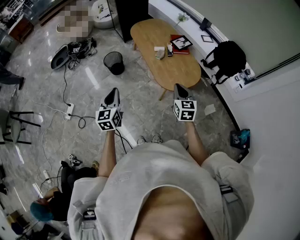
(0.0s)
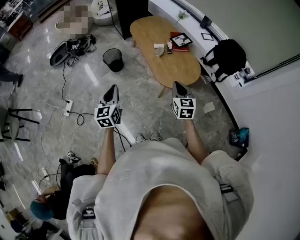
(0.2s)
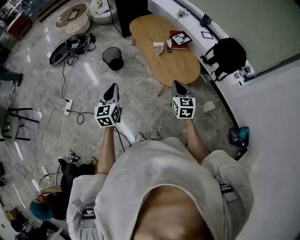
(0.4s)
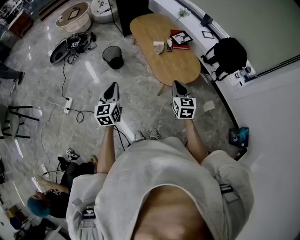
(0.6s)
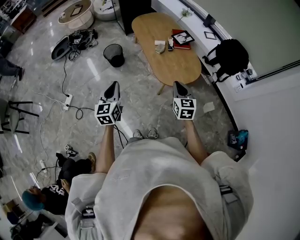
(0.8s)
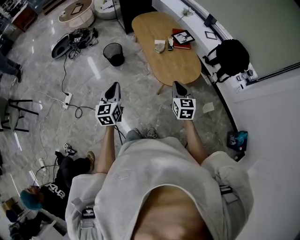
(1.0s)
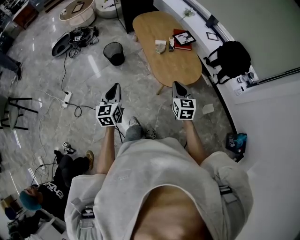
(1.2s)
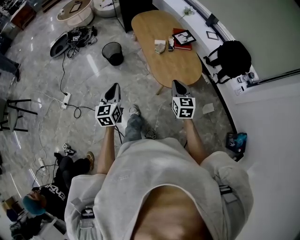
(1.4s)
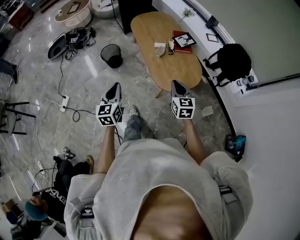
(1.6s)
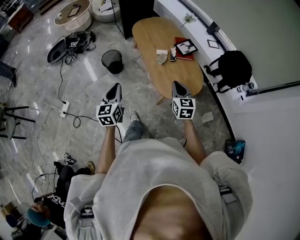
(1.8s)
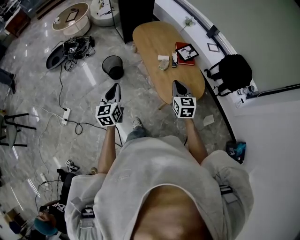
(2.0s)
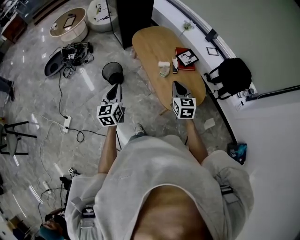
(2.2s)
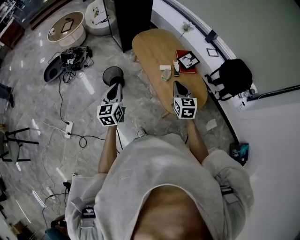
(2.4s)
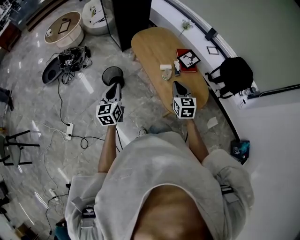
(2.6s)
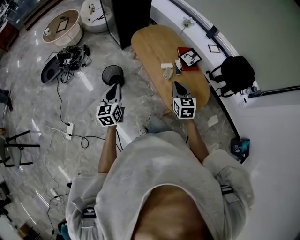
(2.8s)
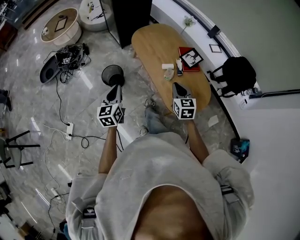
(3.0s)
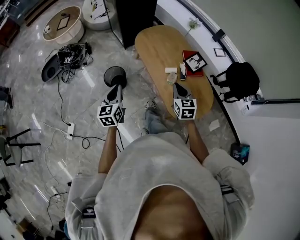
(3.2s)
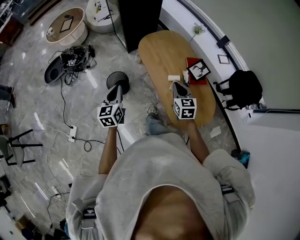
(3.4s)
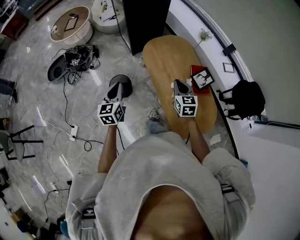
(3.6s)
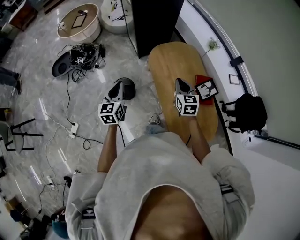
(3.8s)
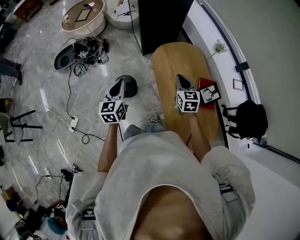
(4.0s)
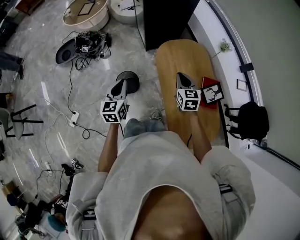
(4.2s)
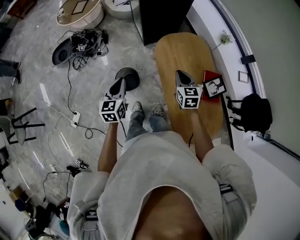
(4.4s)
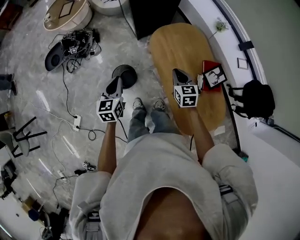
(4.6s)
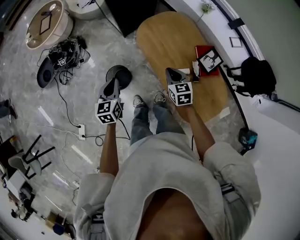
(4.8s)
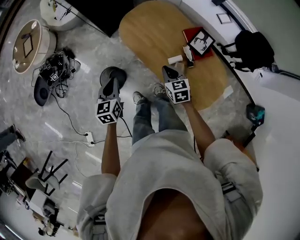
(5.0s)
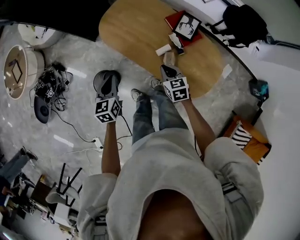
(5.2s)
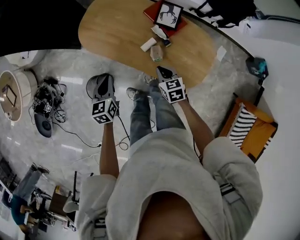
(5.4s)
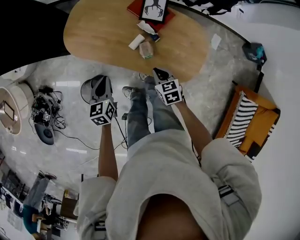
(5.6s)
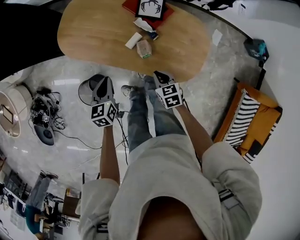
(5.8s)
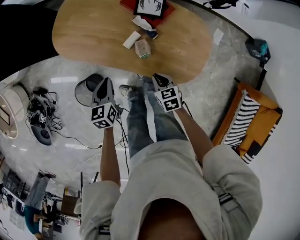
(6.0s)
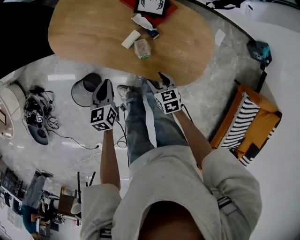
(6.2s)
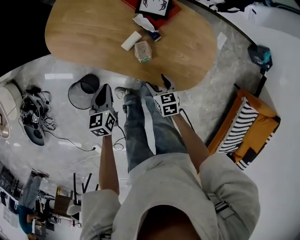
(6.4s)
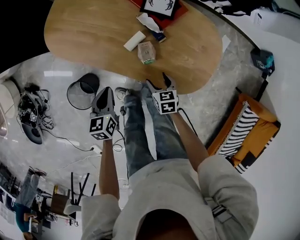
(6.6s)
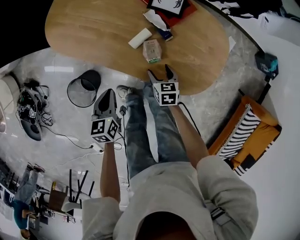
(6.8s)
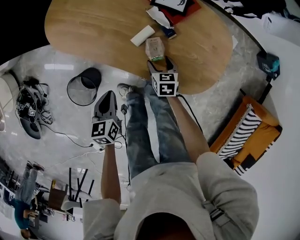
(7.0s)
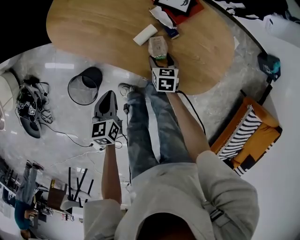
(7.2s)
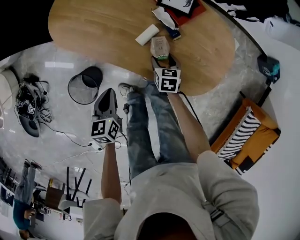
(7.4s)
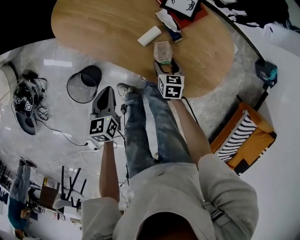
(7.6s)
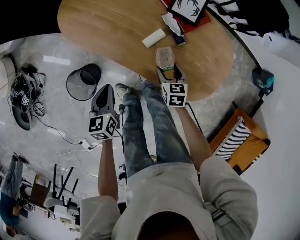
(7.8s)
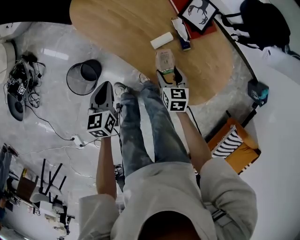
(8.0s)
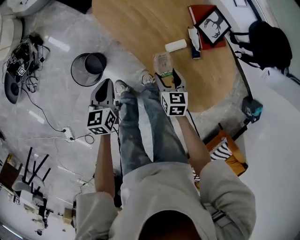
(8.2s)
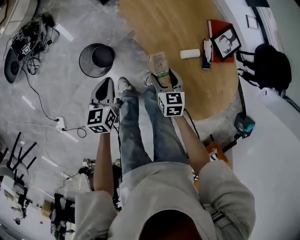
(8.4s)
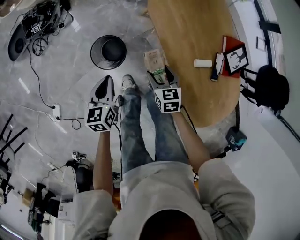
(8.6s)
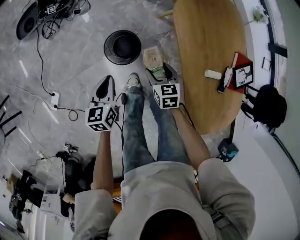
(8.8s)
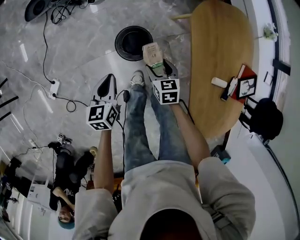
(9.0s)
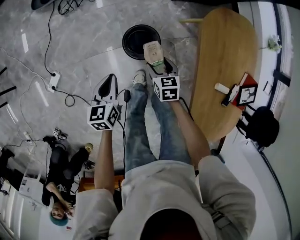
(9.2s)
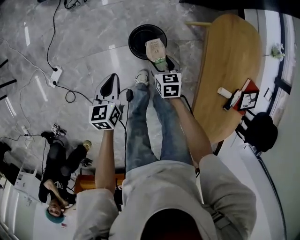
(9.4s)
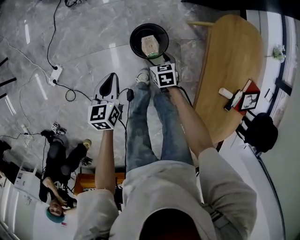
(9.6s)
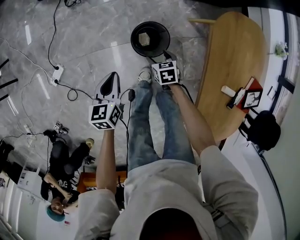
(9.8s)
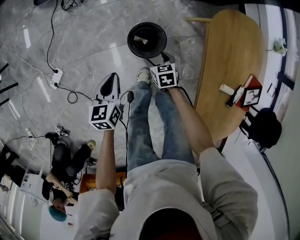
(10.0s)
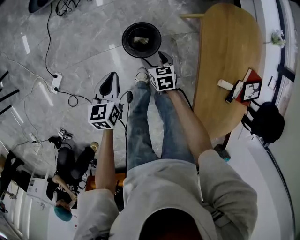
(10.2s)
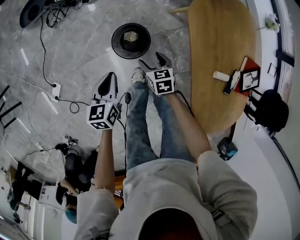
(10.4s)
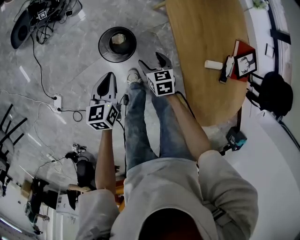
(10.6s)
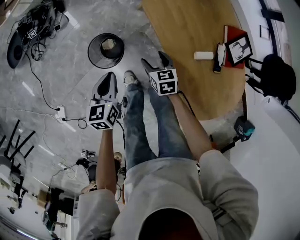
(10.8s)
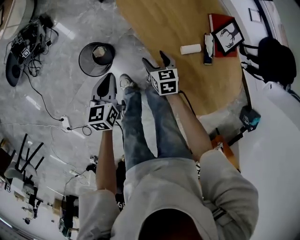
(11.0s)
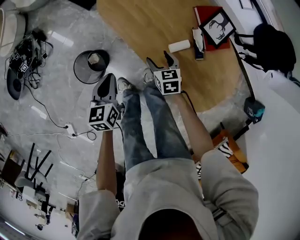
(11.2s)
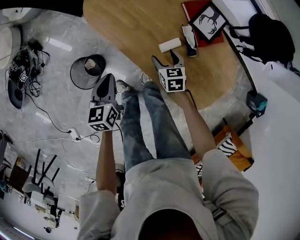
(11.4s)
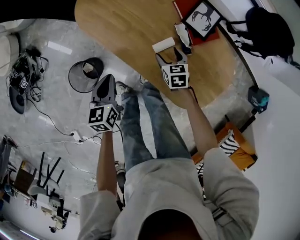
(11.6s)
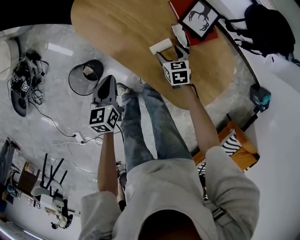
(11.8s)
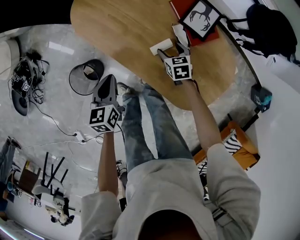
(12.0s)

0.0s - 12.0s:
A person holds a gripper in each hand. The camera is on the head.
0.0s - 1.6s: Both grippers move forward, about 5 cm.
1.6s - 3.0s: Both grippers travel together forward and to the left, approximately 25 cm.
3.0s - 4.4s: Both grippers move forward, about 25 cm.
4.4s - 6.0s: The left gripper moves roughly 30 cm, and changes its angle by about 50 degrees. The right gripper changes place by about 35 cm, and rotates roughly 50 degrees.
6.0s - 7.6s: The right gripper heads downward and forward, covering roughly 15 cm, and opens, while the left gripper goes about 10 cm downward.
7.6s - 9.0s: The right gripper ends up approximately 40 cm from where it was, and swivels some 60 degrees. Meanwhile the left gripper moves roughly 30 cm, and turns by some 50 degrees.
10.4s - 12.0s: The right gripper changes place by about 40 cm, and turns by some 40 degrees, while the left gripper changes place by roughly 35 cm, and turns by approximately 40 degrees.

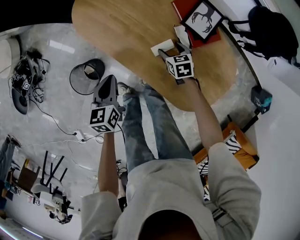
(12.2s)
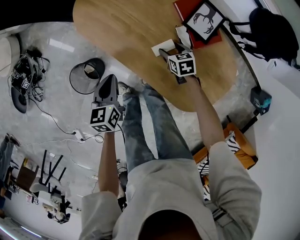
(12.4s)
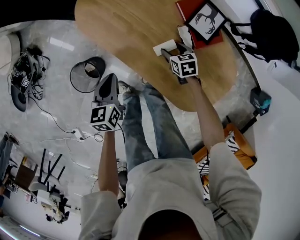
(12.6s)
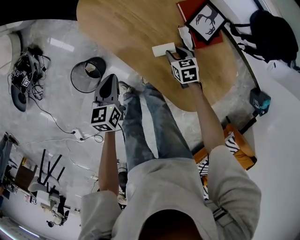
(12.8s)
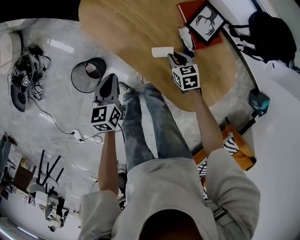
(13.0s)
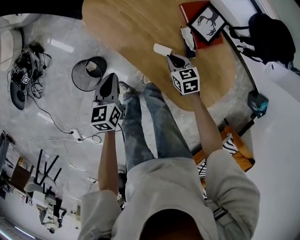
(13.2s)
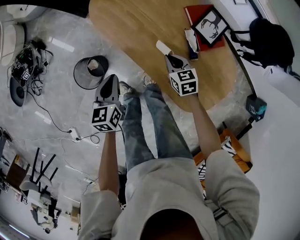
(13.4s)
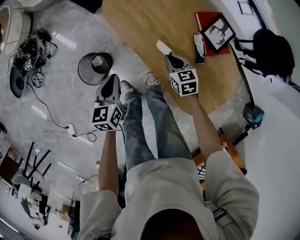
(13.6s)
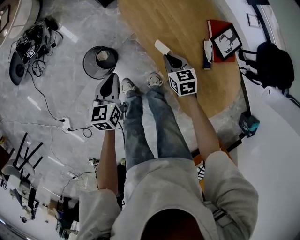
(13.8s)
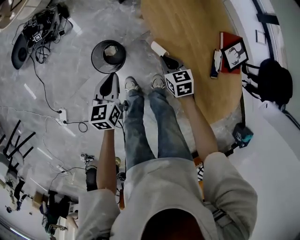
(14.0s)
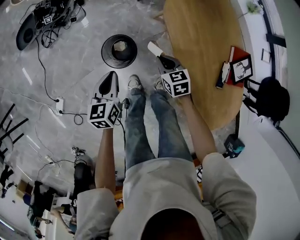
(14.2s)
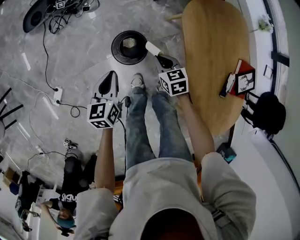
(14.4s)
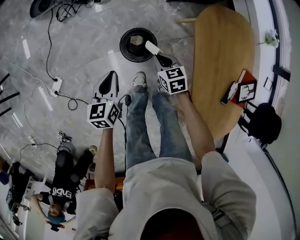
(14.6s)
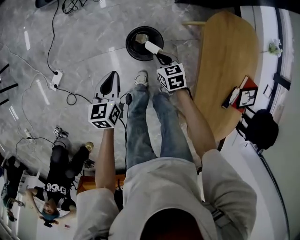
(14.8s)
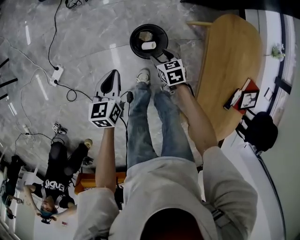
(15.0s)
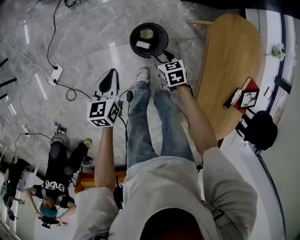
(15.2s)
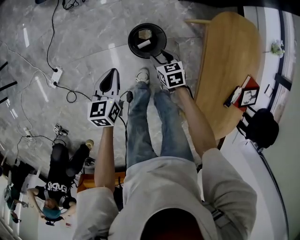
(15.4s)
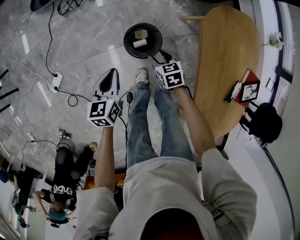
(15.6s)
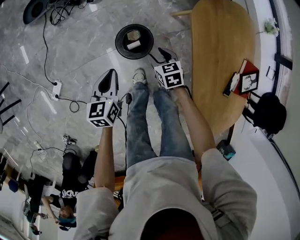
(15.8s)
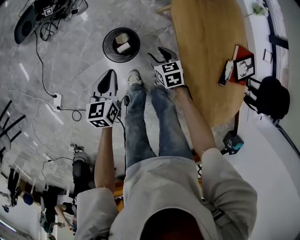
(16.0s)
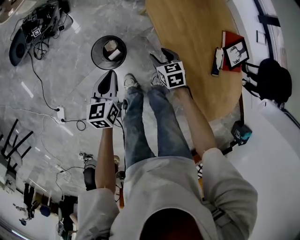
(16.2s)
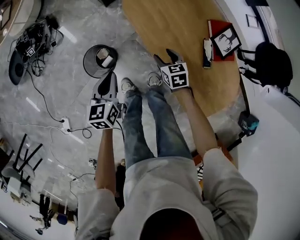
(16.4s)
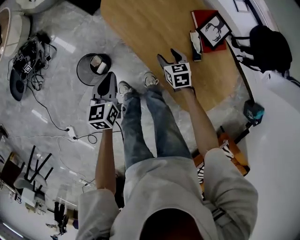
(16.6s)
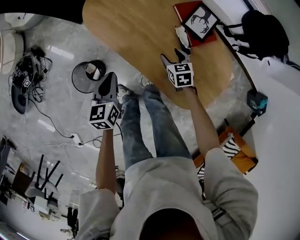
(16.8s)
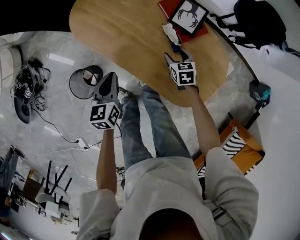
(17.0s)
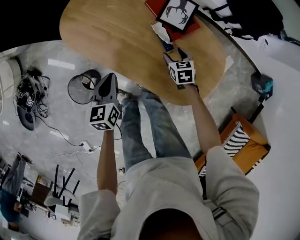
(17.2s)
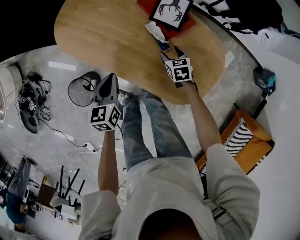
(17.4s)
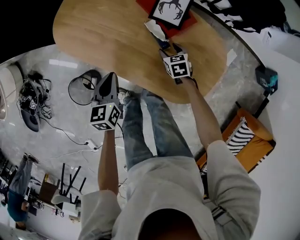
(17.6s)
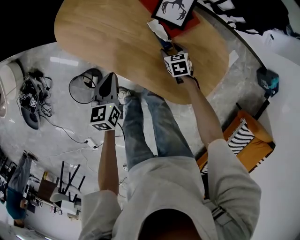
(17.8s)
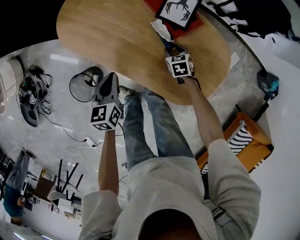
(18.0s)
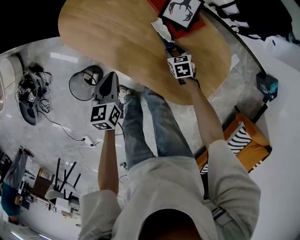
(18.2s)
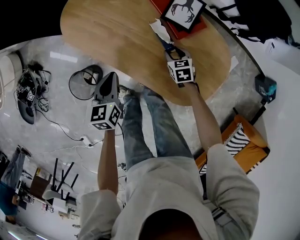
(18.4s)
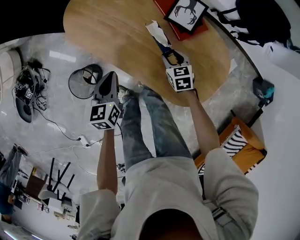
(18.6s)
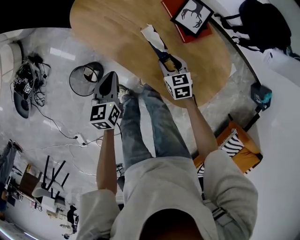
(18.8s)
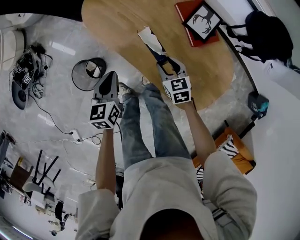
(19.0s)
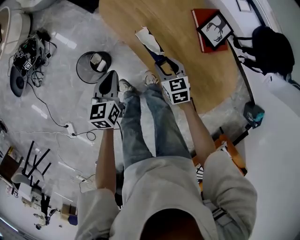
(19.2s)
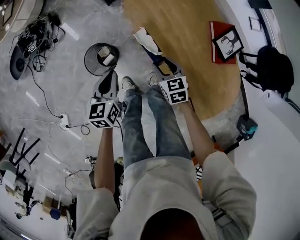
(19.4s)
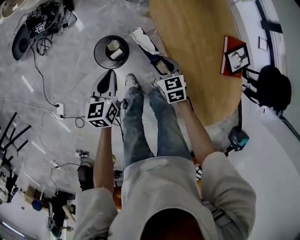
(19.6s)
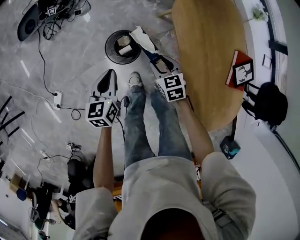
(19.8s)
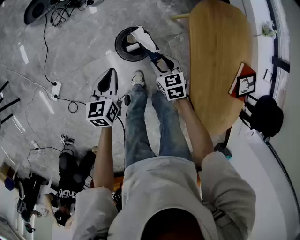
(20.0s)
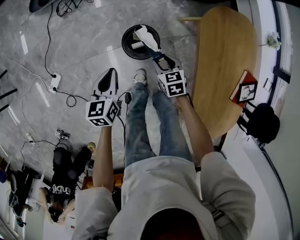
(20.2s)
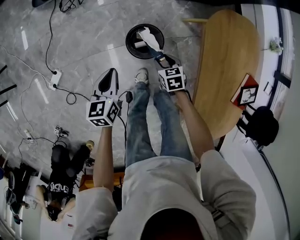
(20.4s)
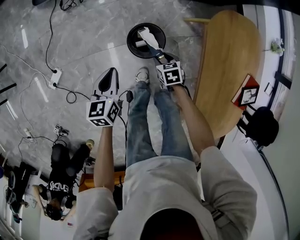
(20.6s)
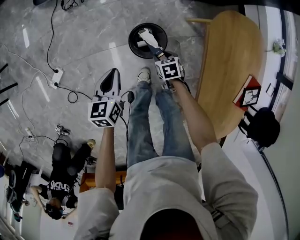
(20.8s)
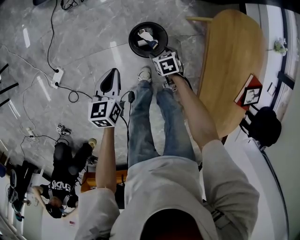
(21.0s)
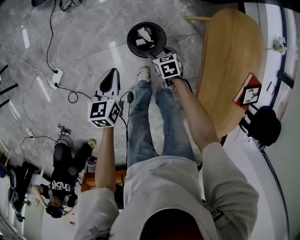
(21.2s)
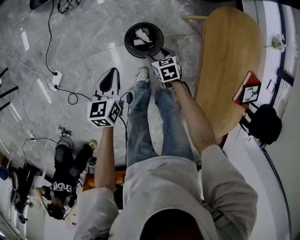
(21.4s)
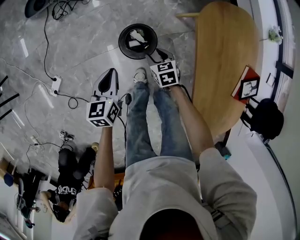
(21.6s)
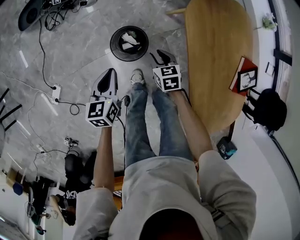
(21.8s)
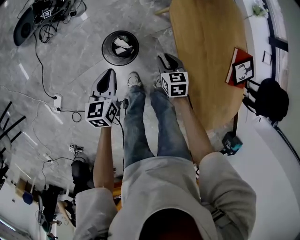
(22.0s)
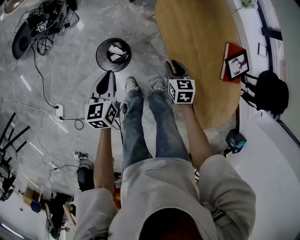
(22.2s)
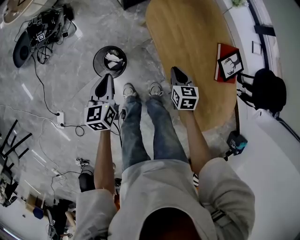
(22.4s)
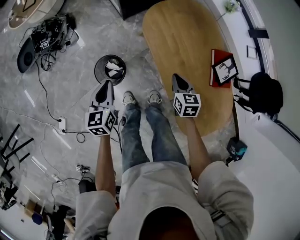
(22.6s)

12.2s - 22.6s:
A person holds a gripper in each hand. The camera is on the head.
12.2s - 13.6s: The right gripper goes some 15 cm to the left and upward, and closes its fingers; the left gripper goes roughly 10 cm to the left.
13.6s - 15.2s: The right gripper changes place by roughly 40 cm, rotates some 40 degrees, and opens; the left gripper ends up about 35 cm from where it was, and changes its angle by about 40 degrees.
15.2s - 16.6s: The left gripper moves some 35 cm, and rotates roughly 40 degrees. Meanwhile the right gripper ends up roughly 40 cm from where it was, and changes its angle by approximately 50 degrees.
16.6s - 18.2s: The right gripper is displaced to the right and downward by approximately 20 cm. Meanwhile the left gripper travels to the right by roughly 15 cm.
18.2s - 19.6s: The right gripper ends up some 40 cm from where it was, and swivels some 40 degrees. The left gripper moves roughly 30 cm, and swivels some 30 degrees.
19.6s - 21.2s: The right gripper moves about 25 cm, and swivels approximately 30 degrees. Meanwhile the left gripper changes place by about 20 cm, and rotates about 20 degrees.
21.2s - 22.6s: The right gripper shifts by approximately 35 cm, swivels some 40 degrees, and closes up; the left gripper moves roughly 20 cm, and rotates approximately 20 degrees.

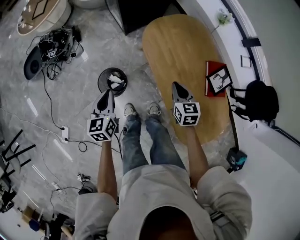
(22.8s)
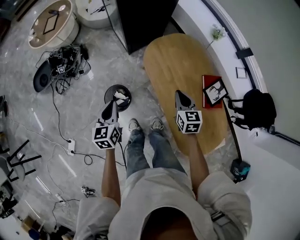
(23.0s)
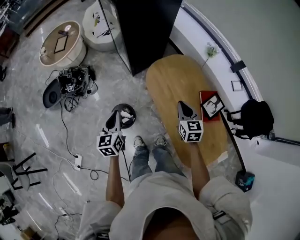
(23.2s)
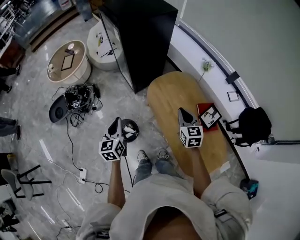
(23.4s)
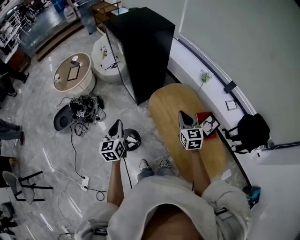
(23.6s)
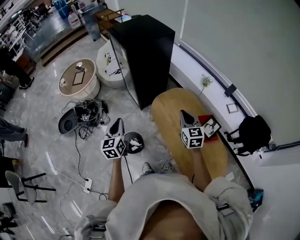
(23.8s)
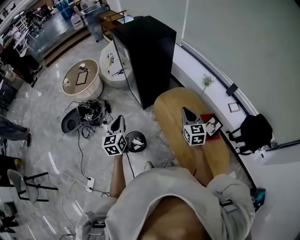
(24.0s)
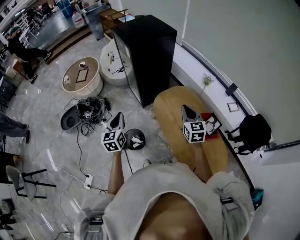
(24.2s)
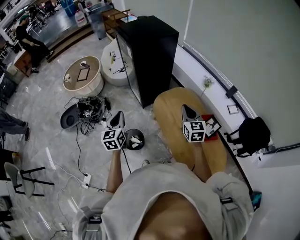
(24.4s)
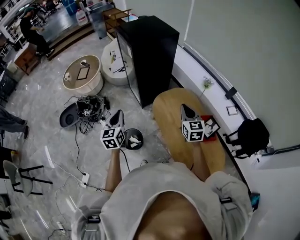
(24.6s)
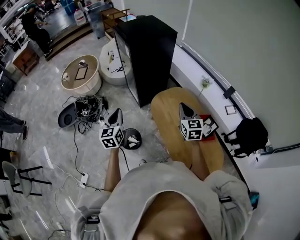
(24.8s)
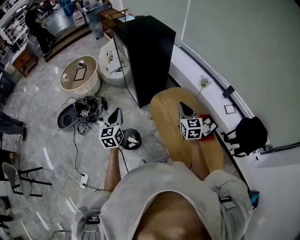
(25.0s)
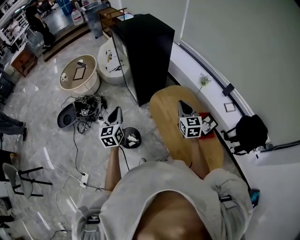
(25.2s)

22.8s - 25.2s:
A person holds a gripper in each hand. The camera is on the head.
22.8s - 24.0s: The two grippers go approximately 30 cm upward. The right gripper changes its angle by approximately 30 degrees.
24.0s - 25.2s: There are only small adjustments of the grippers.
